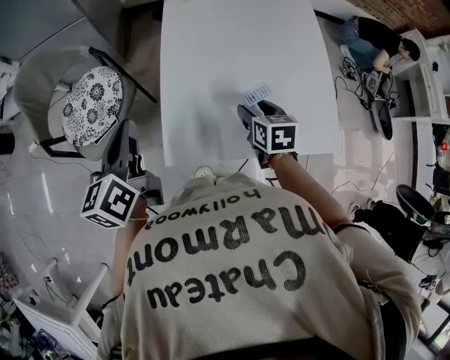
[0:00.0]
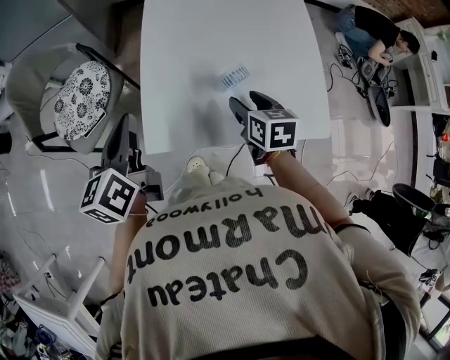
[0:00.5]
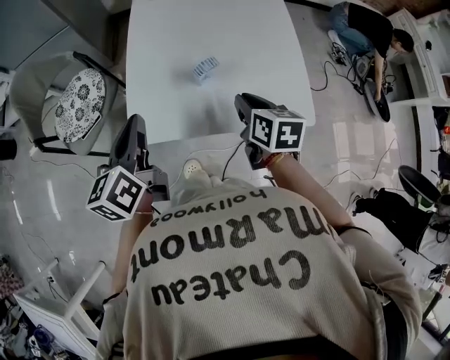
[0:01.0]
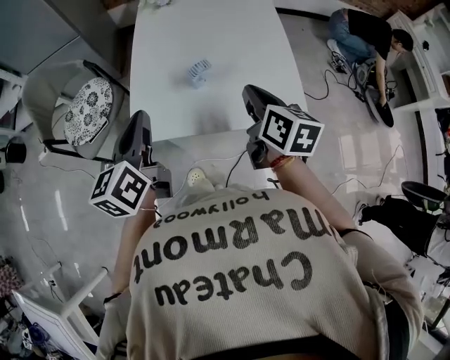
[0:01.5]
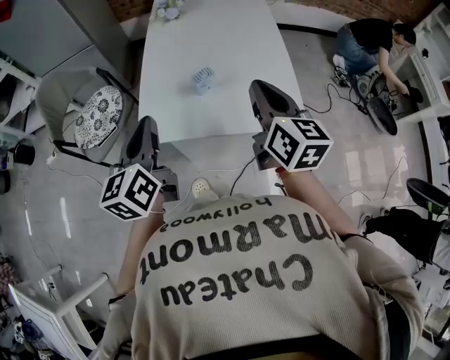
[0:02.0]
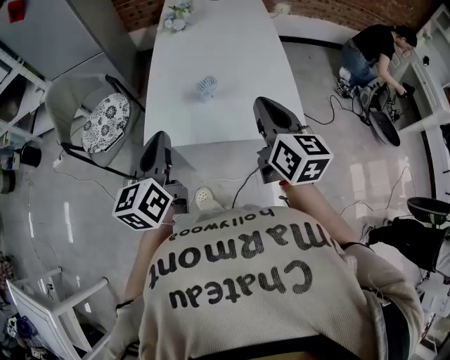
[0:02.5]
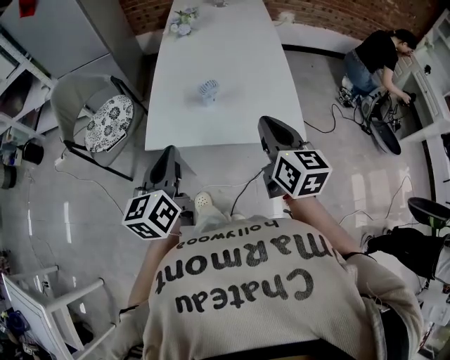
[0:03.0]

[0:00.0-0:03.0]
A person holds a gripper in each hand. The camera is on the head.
0:00.0 to 0:01.5: The left gripper travels to the right and backward by about 20 cm; the right gripper goes approximately 20 cm upward, backward and to the right, rotates about 30 degrees, and closes.
0:01.5 to 0:03.0: The left gripper goes roughly 10 cm backward, while the right gripper shifts roughly 10 cm backward and upward.

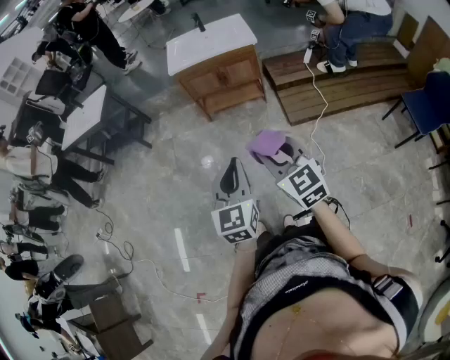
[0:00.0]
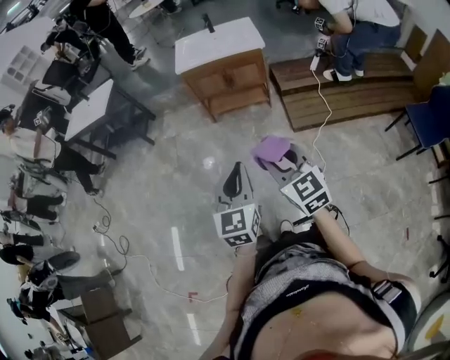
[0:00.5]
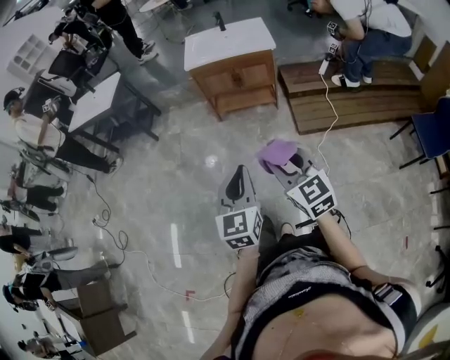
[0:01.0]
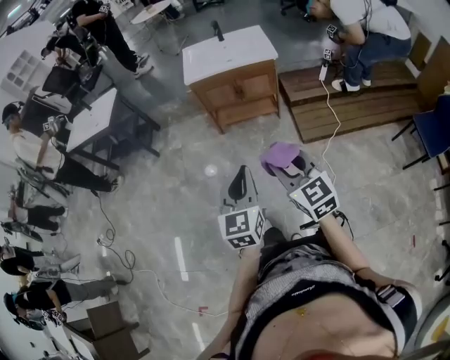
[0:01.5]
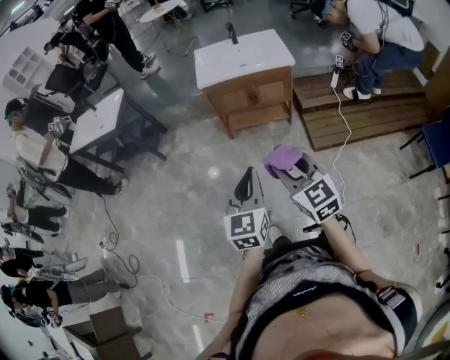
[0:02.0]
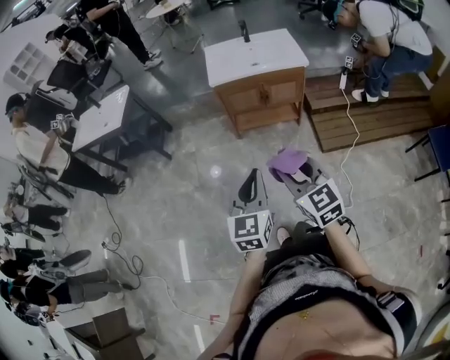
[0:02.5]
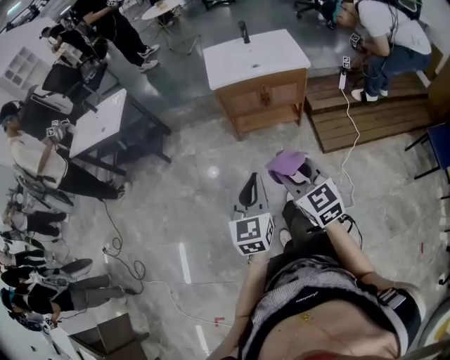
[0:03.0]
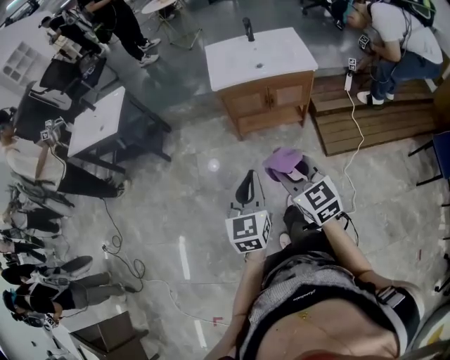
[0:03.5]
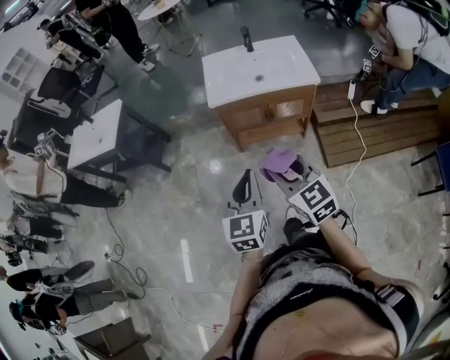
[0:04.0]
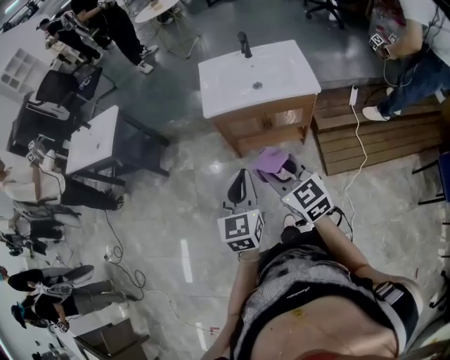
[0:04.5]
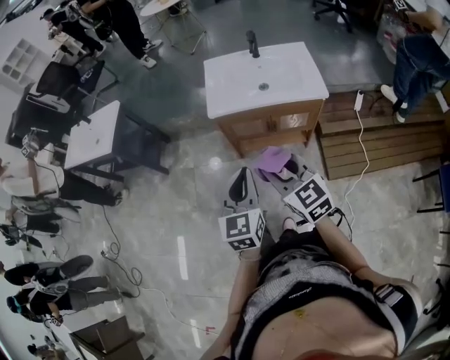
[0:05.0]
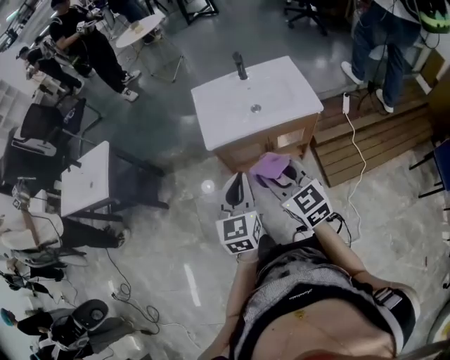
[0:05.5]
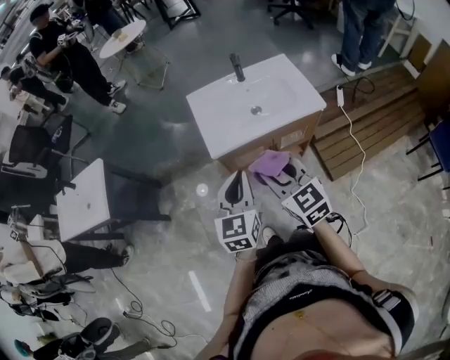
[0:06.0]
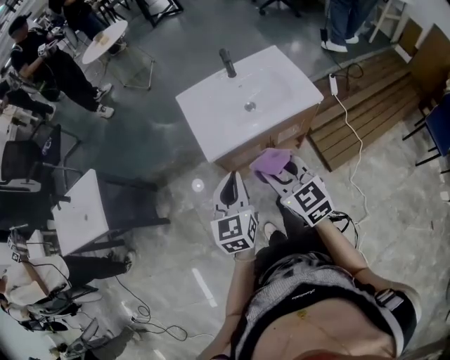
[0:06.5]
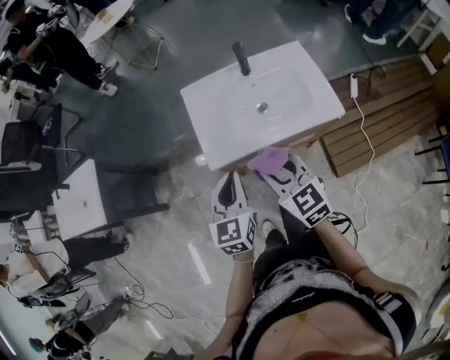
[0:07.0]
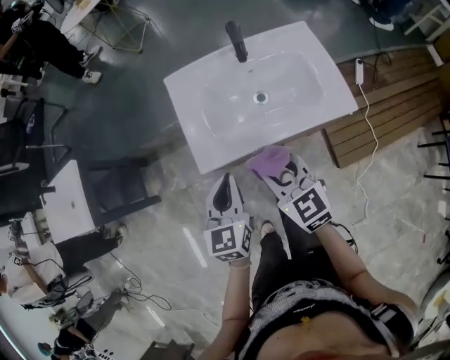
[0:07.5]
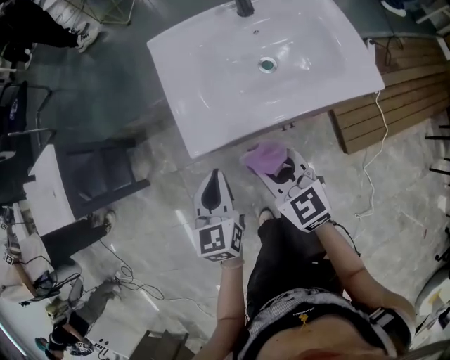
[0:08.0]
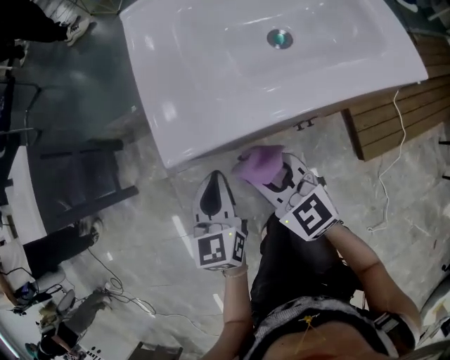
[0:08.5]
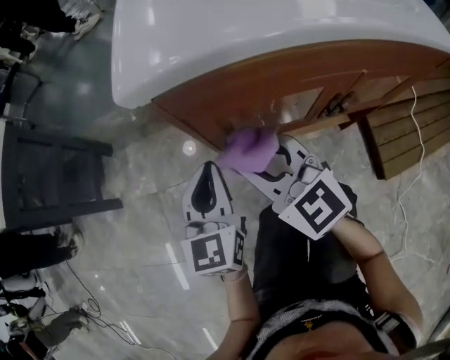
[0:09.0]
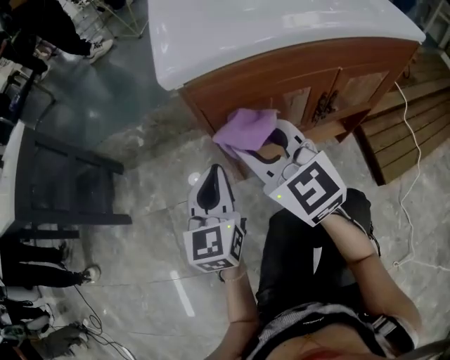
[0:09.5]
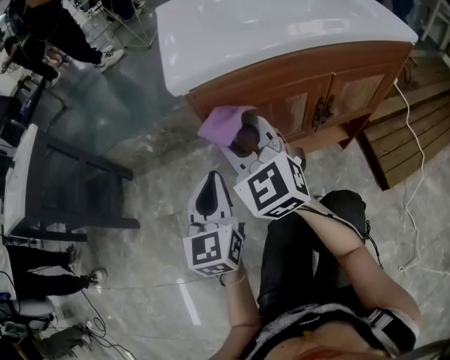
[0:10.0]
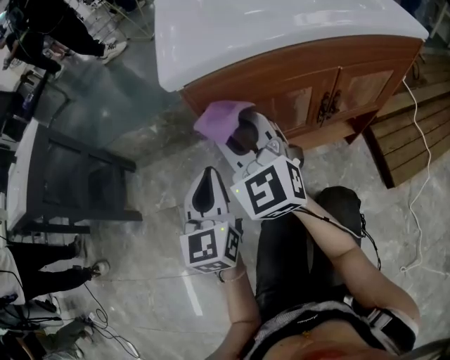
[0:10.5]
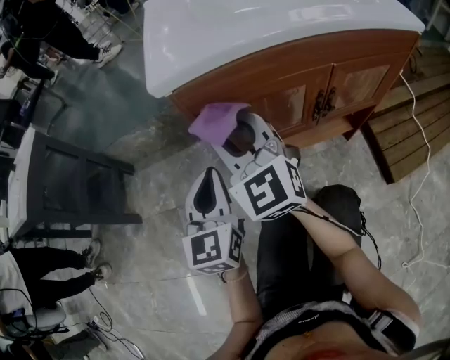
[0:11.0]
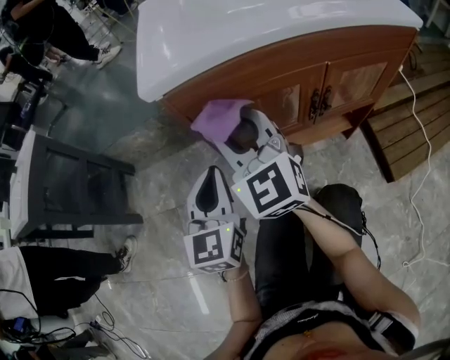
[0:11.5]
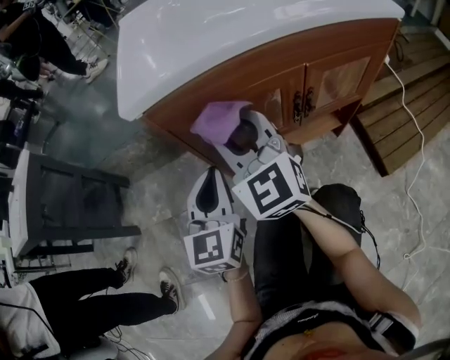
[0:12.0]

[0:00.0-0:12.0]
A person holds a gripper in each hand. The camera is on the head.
0:00.0 to 0:02.0: The grippers both shift forward and to the left by some 15 cm.
0:02.0 to 0:04.0: The two grippers go roughly 20 cm forward.
0:04.0 to 0:06.0: The two grippers go about 25 cm forward.
0:06.0 to 0:08.0: The grippers both shift downward and forward by roughly 25 cm.
0:08.0 to 0:10.0: The left gripper is displaced downward by roughly 25 cm. The right gripper shifts some 20 cm downward and to the left, and rotates roughly 30 degrees.
0:10.0 to 0:12.0: The two grippers go approximately 5 cm to the right.

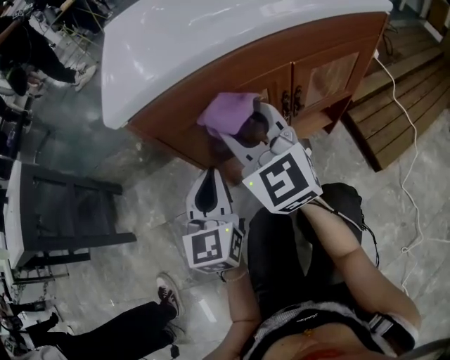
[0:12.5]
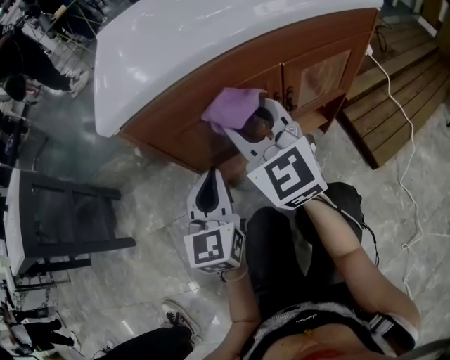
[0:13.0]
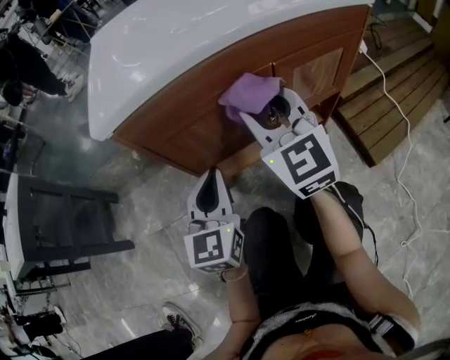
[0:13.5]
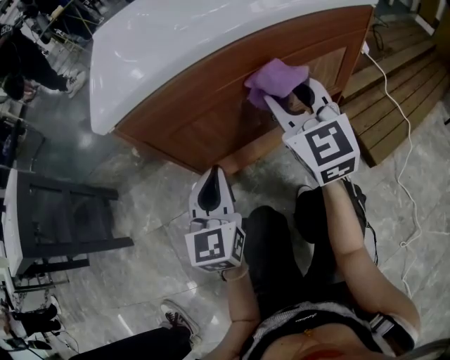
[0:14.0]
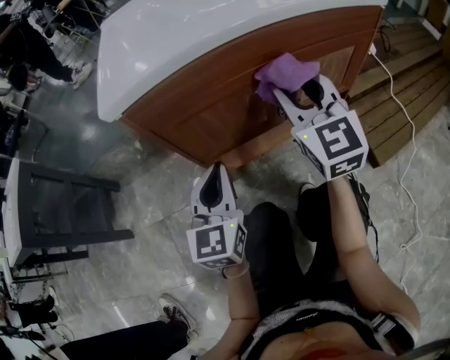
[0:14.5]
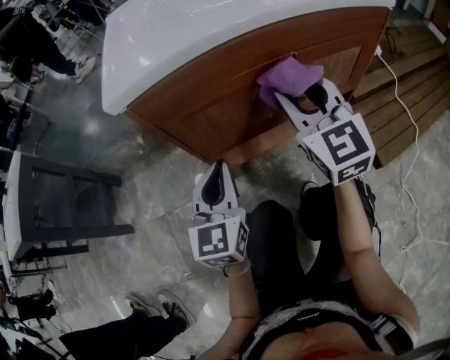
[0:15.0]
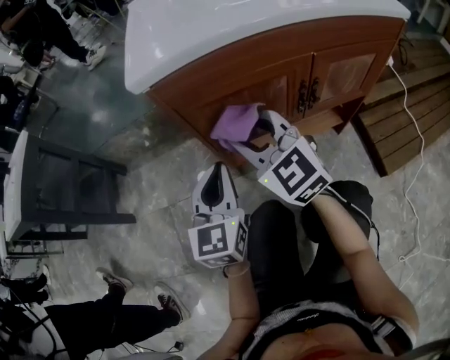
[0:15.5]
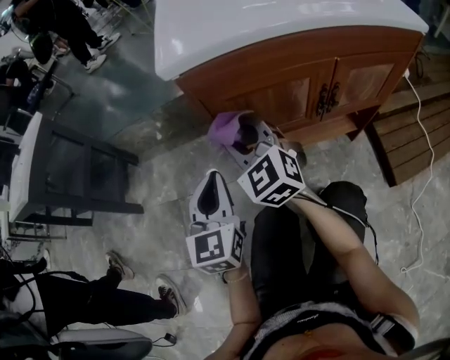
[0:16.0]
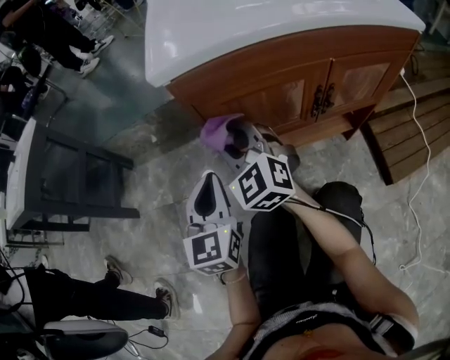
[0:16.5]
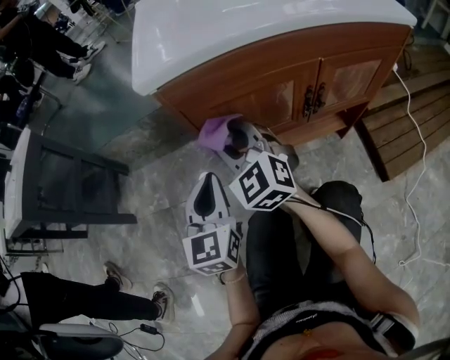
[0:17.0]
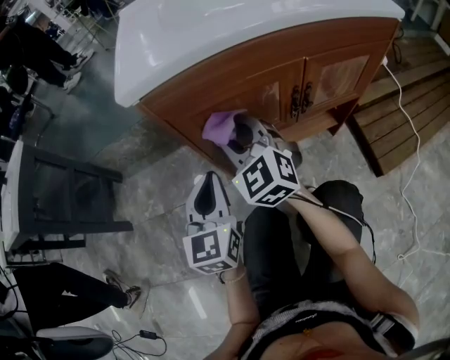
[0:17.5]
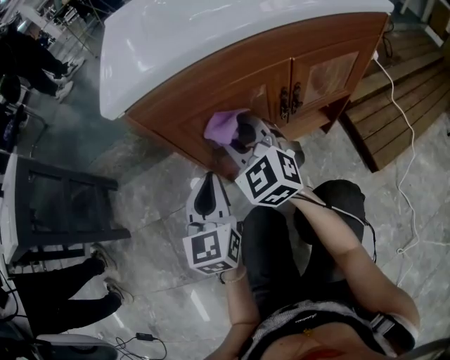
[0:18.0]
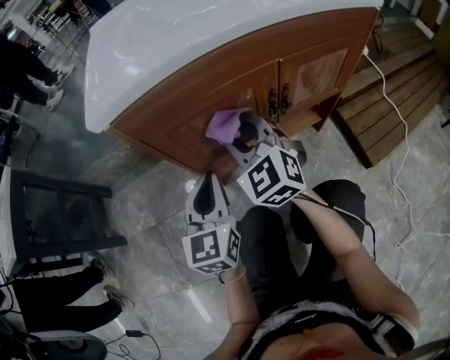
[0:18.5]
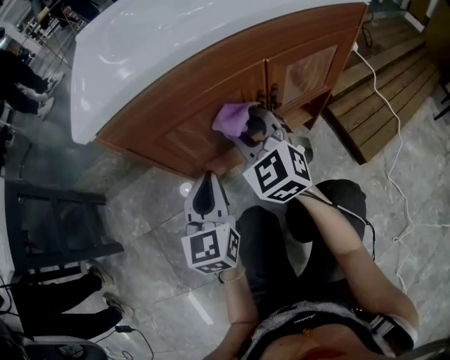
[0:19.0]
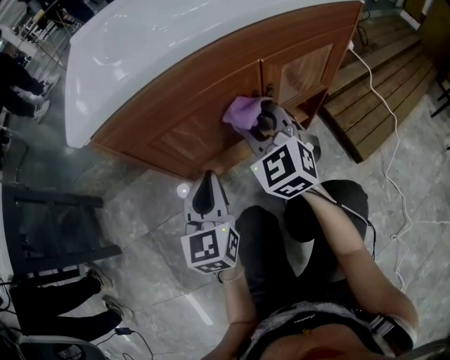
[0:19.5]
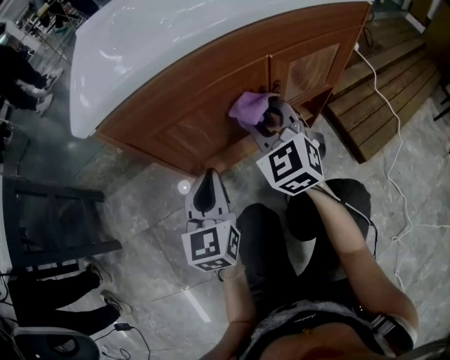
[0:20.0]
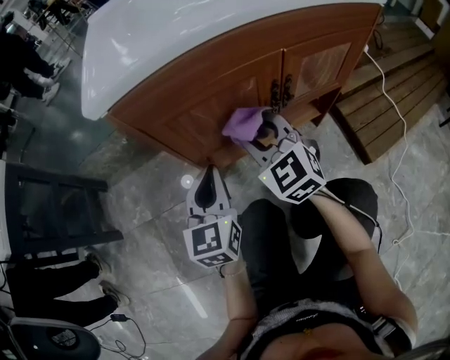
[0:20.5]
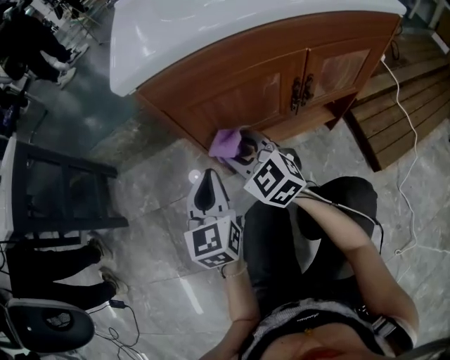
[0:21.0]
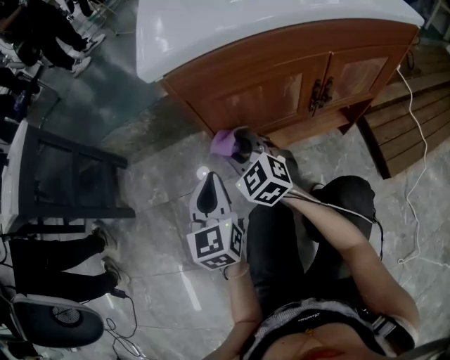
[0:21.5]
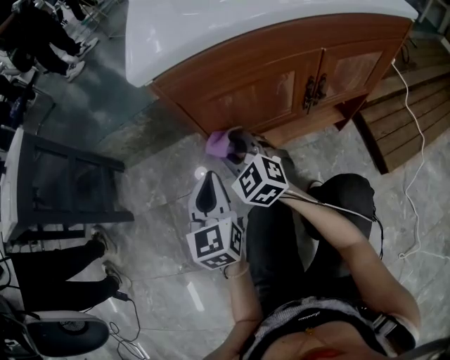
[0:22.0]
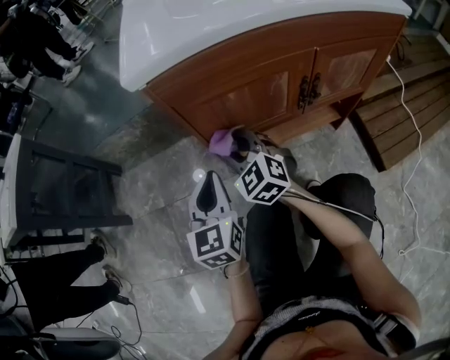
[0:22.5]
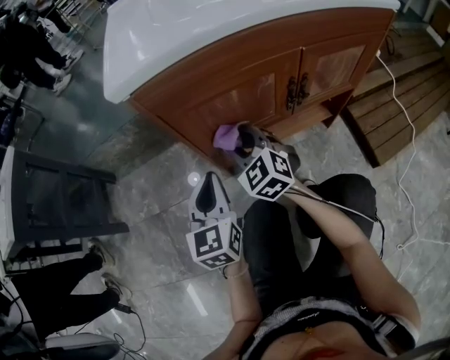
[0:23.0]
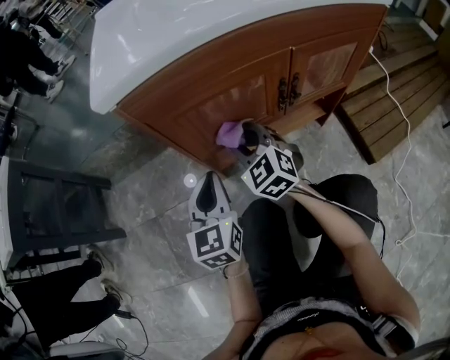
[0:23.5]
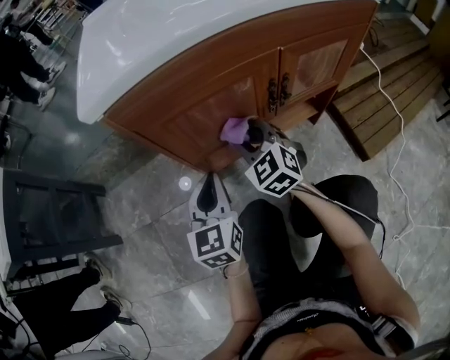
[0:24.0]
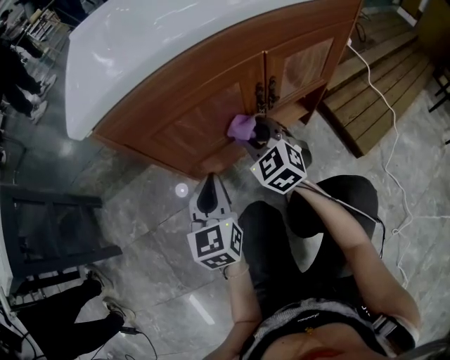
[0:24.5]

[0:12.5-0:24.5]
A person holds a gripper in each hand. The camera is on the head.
0:12.5 to 0:14.5: The right gripper moves to the right, about 15 cm.
0:14.5 to 0:16.5: The right gripper is displaced to the left by about 25 cm, and swivels about 30 degrees, while the left gripper moves to the left, approximately 10 cm.
0:16.5 to 0:18.5: Both grippers move to the right, about 10 cm.
0:18.5 to 0:20.5: The right gripper goes to the right and returns, some 10 cm each way.
0:20.5 to 0:22.5: The left gripper heads to the left, covering some 5 cm. Meanwhile the right gripper goes roughly 15 cm to the left and downward.
0:22.5 to 0:24.5: The right gripper travels to the right by some 15 cm. The left gripper moves to the right, approximately 10 cm.
